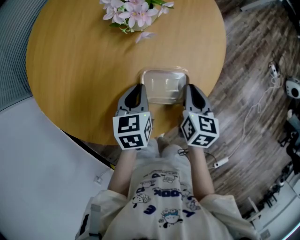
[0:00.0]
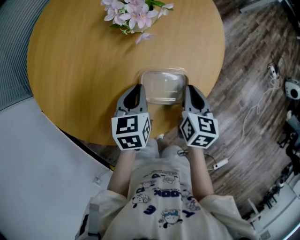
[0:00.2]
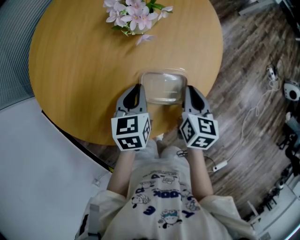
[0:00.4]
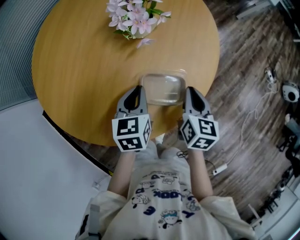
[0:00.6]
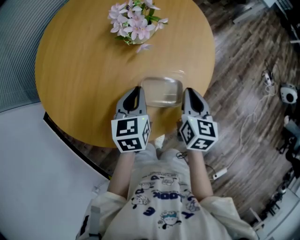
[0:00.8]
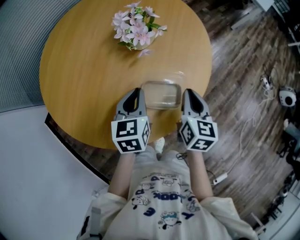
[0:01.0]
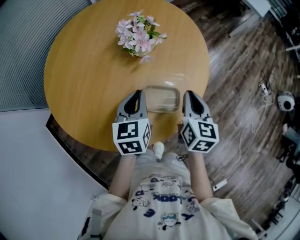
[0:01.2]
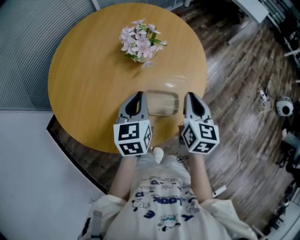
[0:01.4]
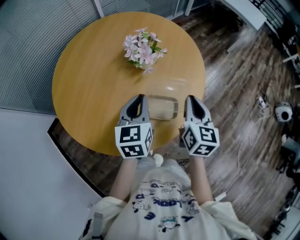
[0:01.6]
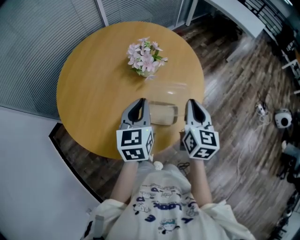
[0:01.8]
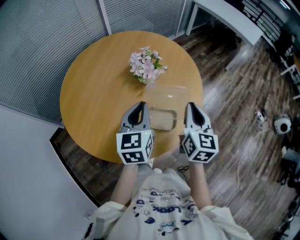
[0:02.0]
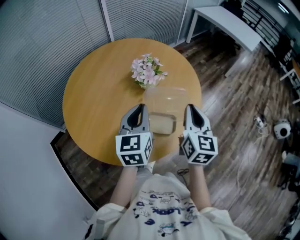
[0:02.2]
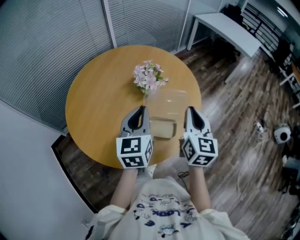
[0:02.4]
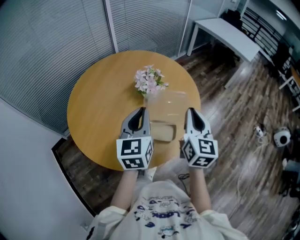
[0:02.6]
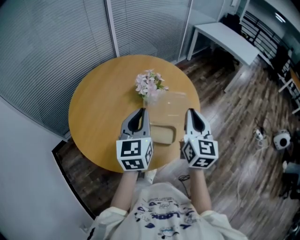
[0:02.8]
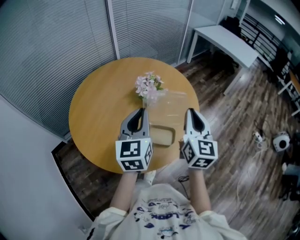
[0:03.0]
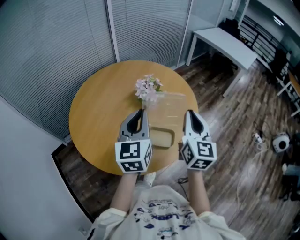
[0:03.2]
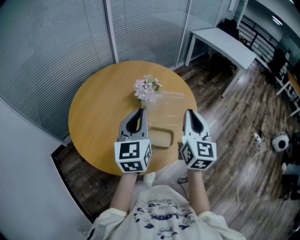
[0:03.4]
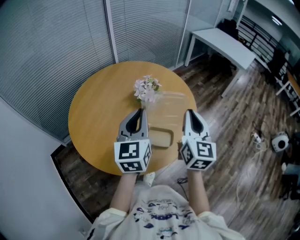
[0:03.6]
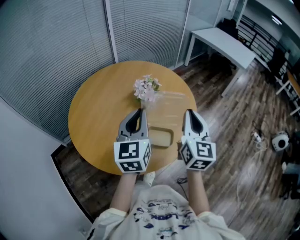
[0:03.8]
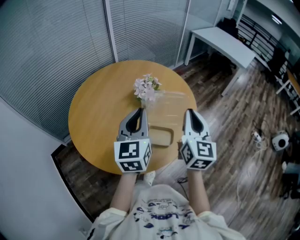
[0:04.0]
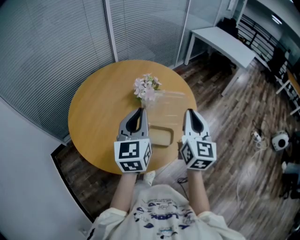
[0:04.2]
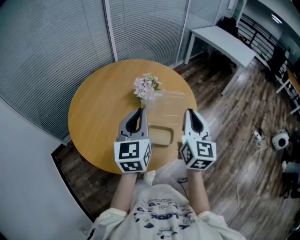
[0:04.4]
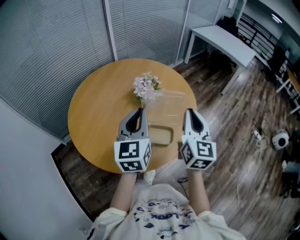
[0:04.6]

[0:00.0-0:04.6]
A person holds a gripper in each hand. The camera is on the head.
0:00.0 to 0:01.6: Both grippers travel together upward, approximately 20 cm. The left gripper swivels approximately 20 degrees.
0:01.6 to 0:03.0: The grippers both shift upward by some 15 cm.
0:03.0 to 0:04.6: The grippers move only a little.

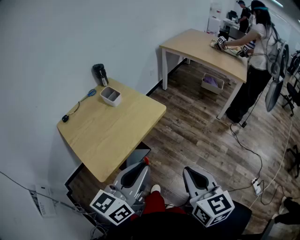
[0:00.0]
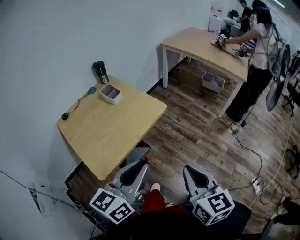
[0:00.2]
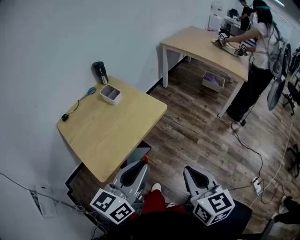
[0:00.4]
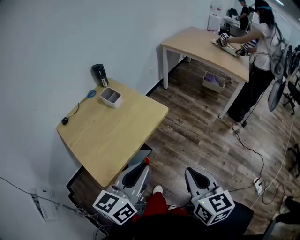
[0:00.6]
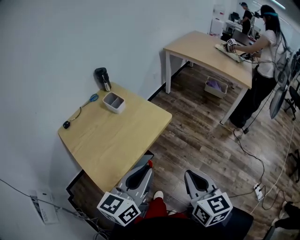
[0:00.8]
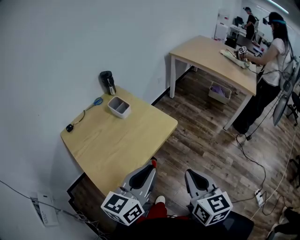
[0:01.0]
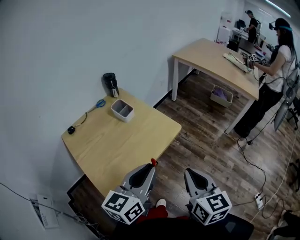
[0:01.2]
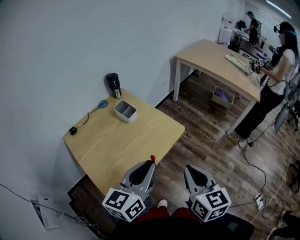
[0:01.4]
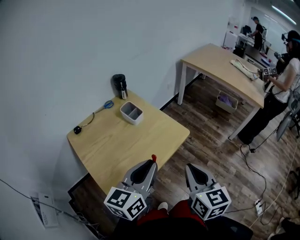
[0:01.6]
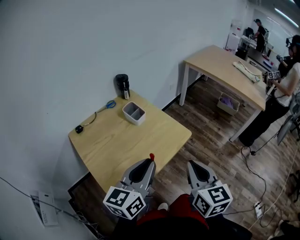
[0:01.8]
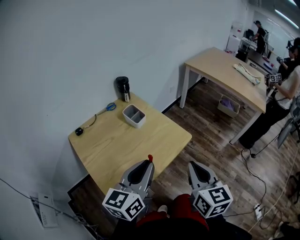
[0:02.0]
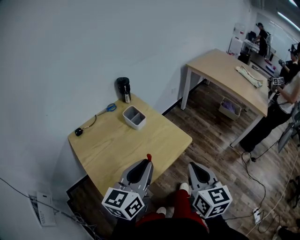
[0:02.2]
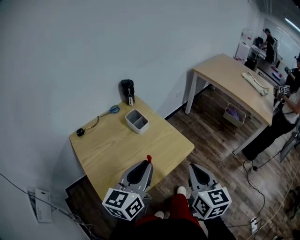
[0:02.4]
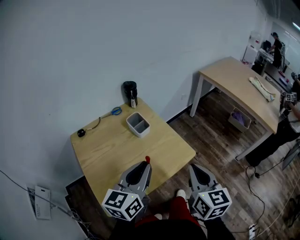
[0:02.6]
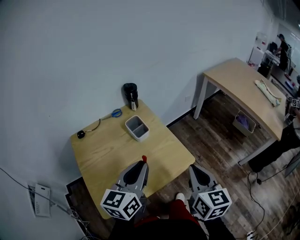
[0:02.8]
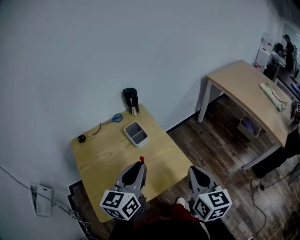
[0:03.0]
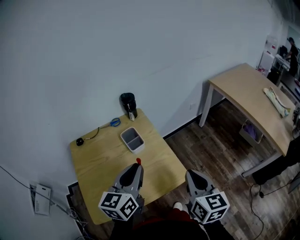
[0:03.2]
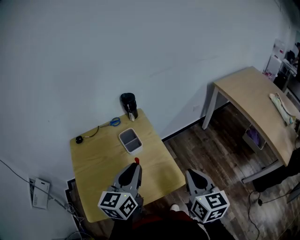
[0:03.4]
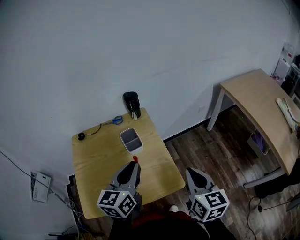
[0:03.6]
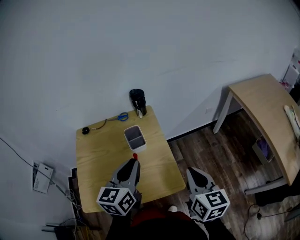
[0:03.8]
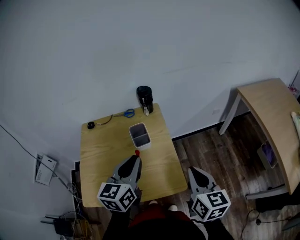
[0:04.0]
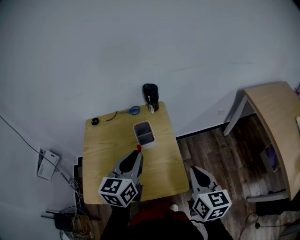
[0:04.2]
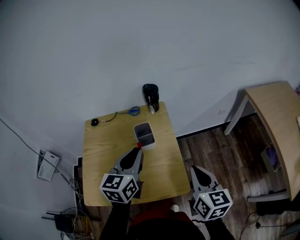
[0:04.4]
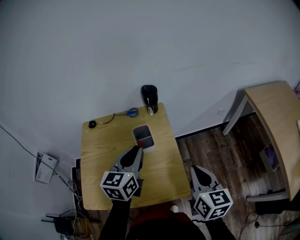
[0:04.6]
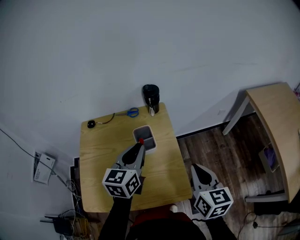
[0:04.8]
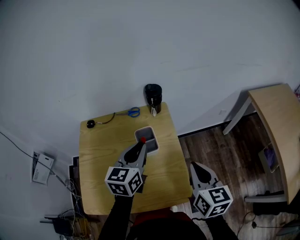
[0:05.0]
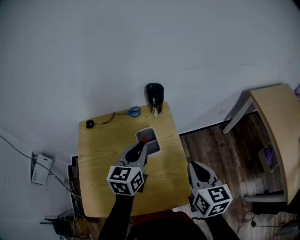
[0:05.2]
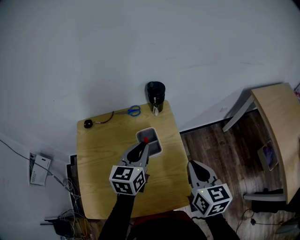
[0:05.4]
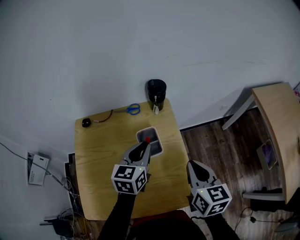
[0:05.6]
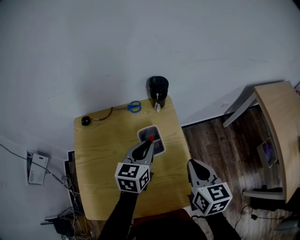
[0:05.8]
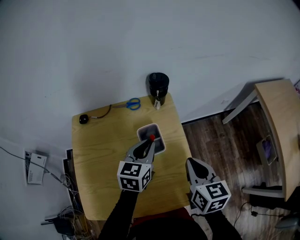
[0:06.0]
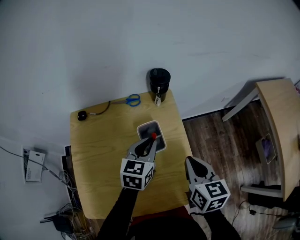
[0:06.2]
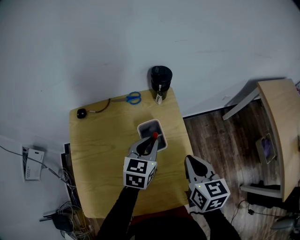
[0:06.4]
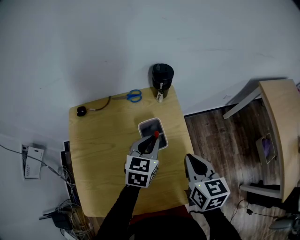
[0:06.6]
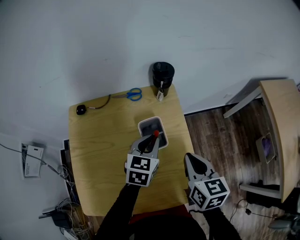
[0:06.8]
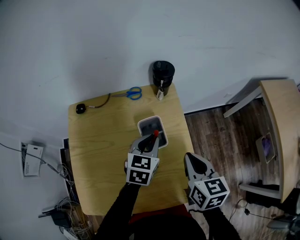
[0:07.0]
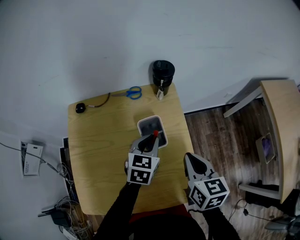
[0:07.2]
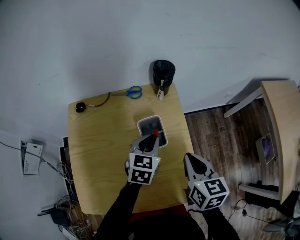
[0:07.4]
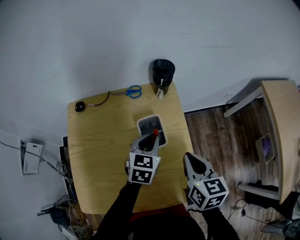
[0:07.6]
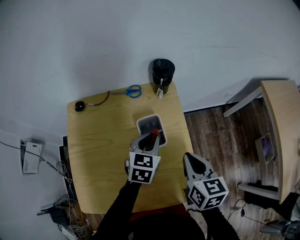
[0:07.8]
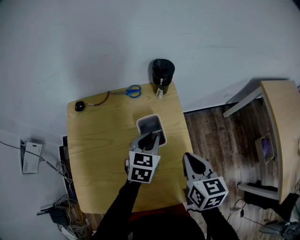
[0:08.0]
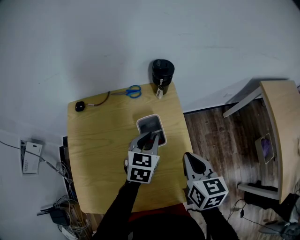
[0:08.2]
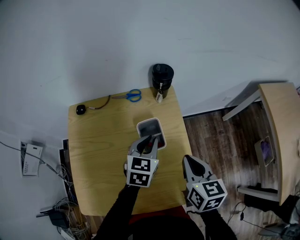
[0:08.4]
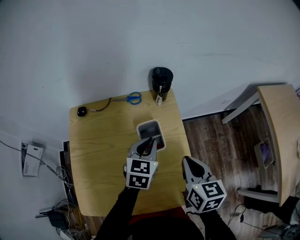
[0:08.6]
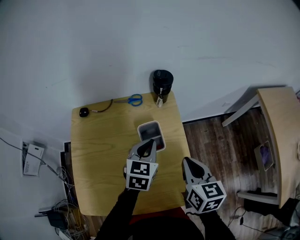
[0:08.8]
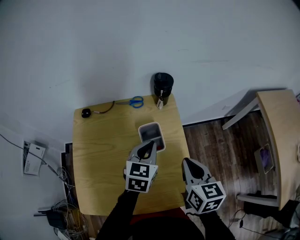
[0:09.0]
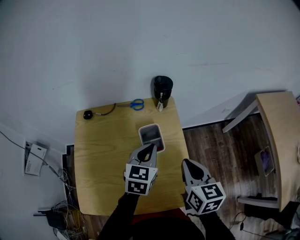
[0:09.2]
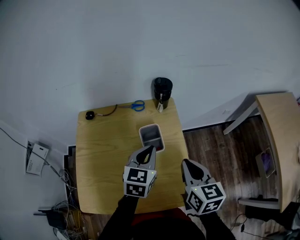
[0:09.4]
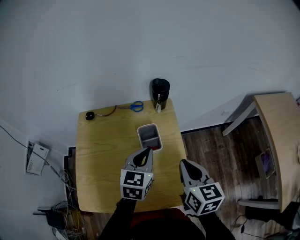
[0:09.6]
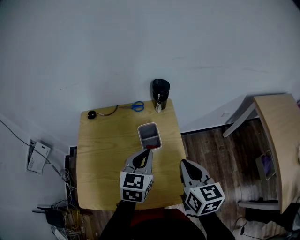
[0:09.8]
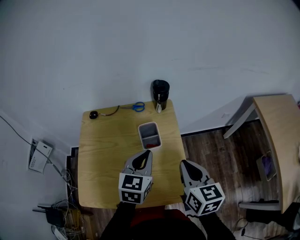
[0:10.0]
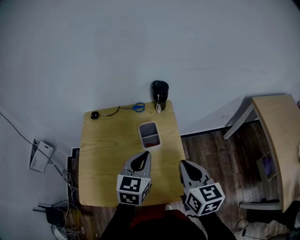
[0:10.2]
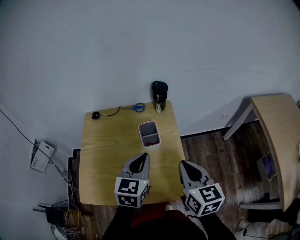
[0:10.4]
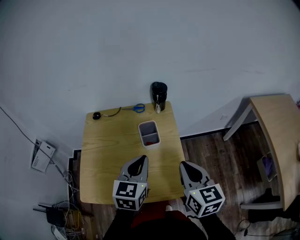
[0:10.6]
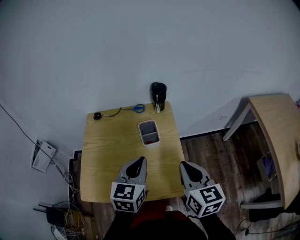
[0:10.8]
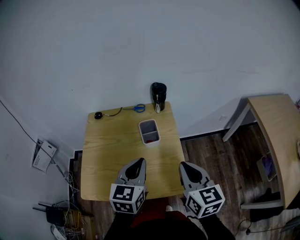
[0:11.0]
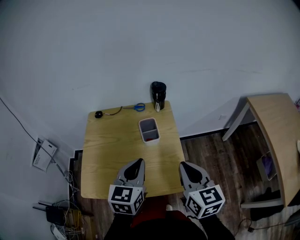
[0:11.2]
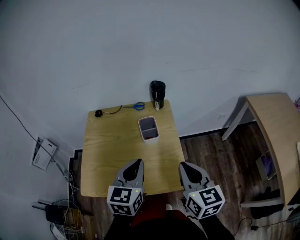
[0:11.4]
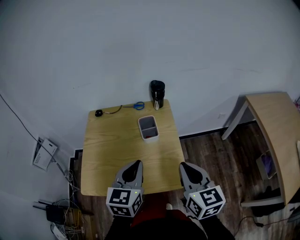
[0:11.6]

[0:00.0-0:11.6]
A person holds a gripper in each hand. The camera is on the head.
0:00.0 to 0:01.4: The two grippers go roughly 15 cm forward and to the left.
0:01.4 to 0:02.8: The two grippers go roughly 15 cm forward. The left gripper swivels roughly 20 degrees.
0:02.8 to 0:04.4: The right gripper ends up some 20 cm from where it was, and changes its angle by about 20 degrees. The left gripper ends up about 15 cm from where it was, and rotates some 30 degrees.
0:04.4 to 0:05.8: The left gripper moves forward and downward, roughly 15 cm, while the right gripper shifts approximately 15 cm forward and to the left.
0:05.8 to 0:07.2: The left gripper moves downward, some 5 cm.
0:07.2 to 0:08.8: The grippers move only a little.
0:08.8 to 0:10.2: The right gripper is displaced backward and upward by approximately 10 cm. Meanwhile the left gripper moves backward and upward, about 15 cm.
0:10.2 to 0:11.6: Both grippers move backward, some 10 cm.

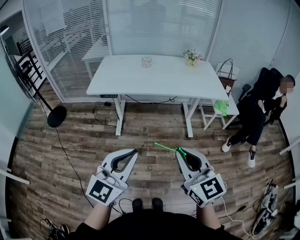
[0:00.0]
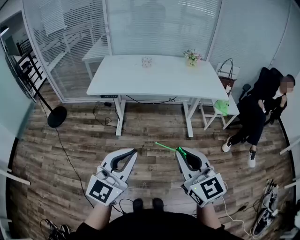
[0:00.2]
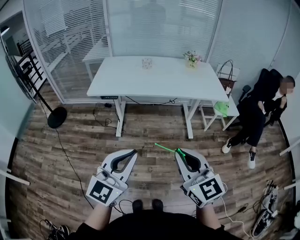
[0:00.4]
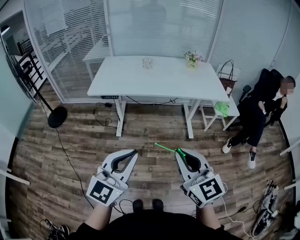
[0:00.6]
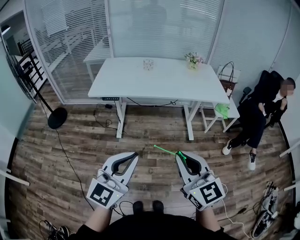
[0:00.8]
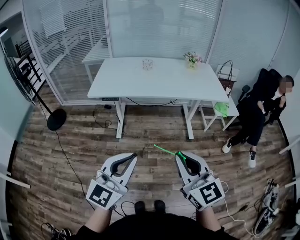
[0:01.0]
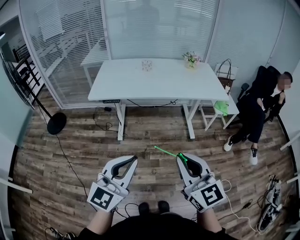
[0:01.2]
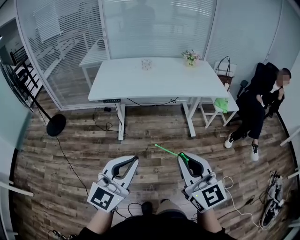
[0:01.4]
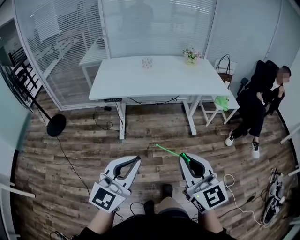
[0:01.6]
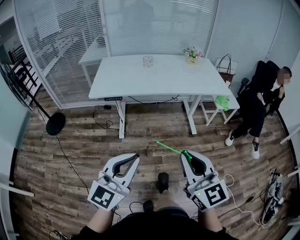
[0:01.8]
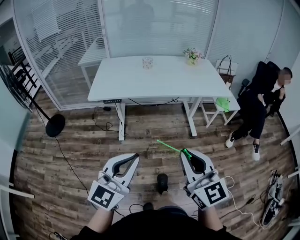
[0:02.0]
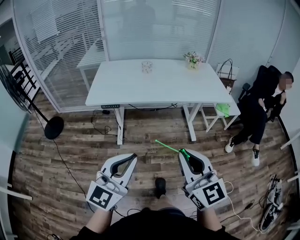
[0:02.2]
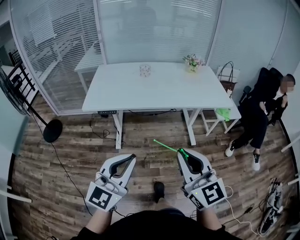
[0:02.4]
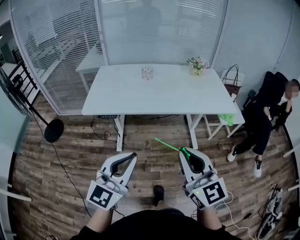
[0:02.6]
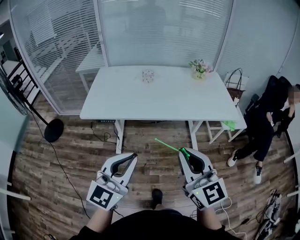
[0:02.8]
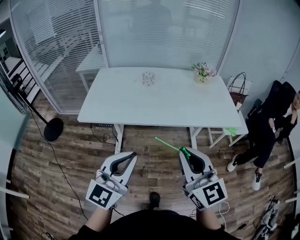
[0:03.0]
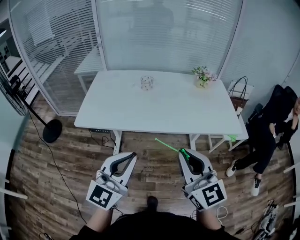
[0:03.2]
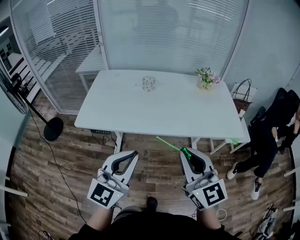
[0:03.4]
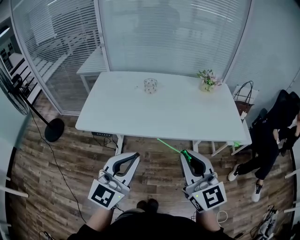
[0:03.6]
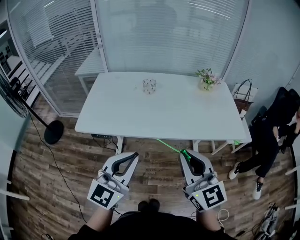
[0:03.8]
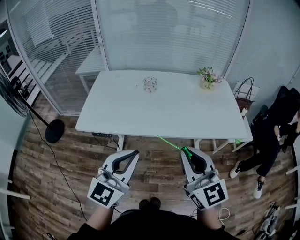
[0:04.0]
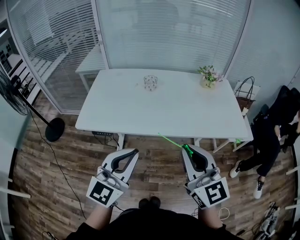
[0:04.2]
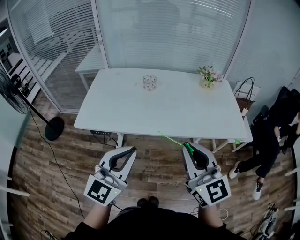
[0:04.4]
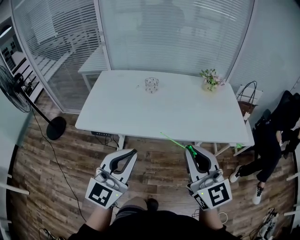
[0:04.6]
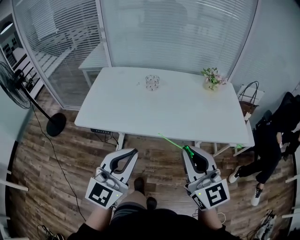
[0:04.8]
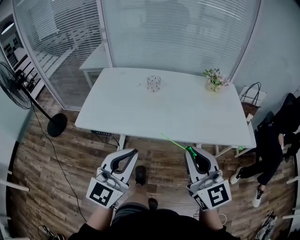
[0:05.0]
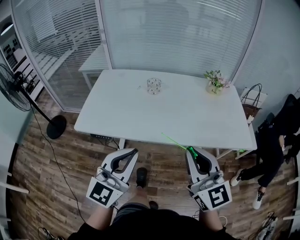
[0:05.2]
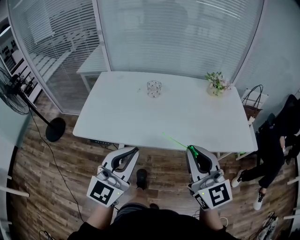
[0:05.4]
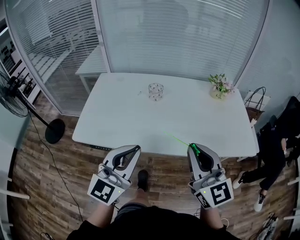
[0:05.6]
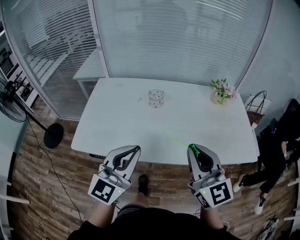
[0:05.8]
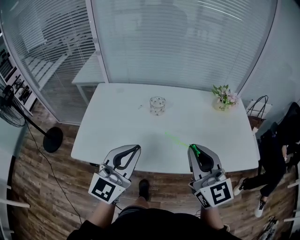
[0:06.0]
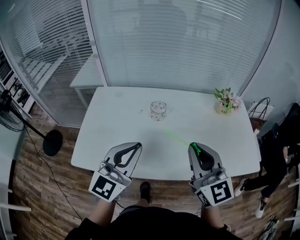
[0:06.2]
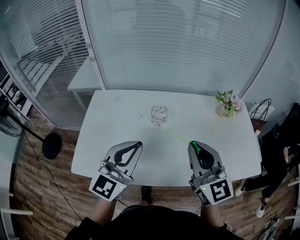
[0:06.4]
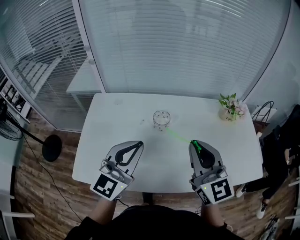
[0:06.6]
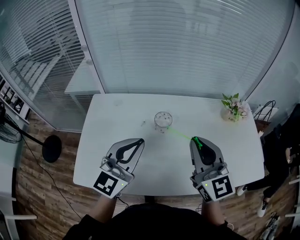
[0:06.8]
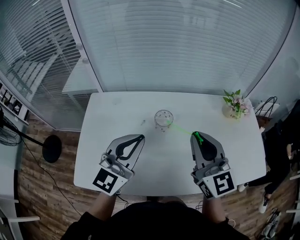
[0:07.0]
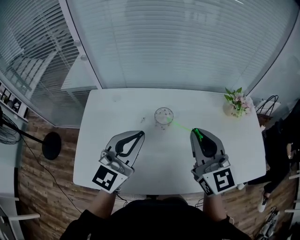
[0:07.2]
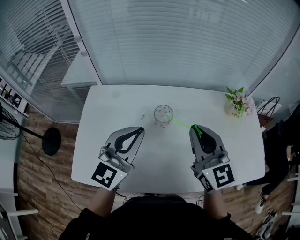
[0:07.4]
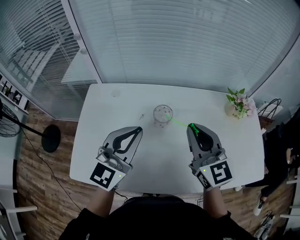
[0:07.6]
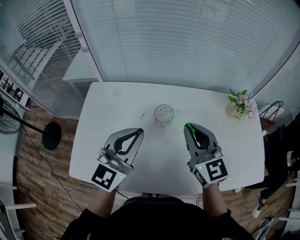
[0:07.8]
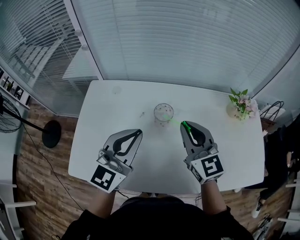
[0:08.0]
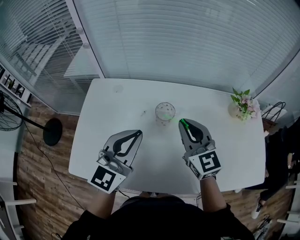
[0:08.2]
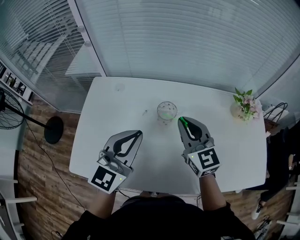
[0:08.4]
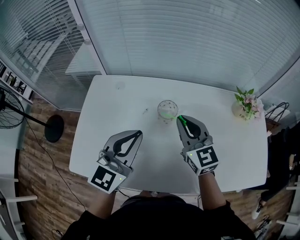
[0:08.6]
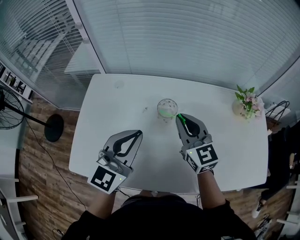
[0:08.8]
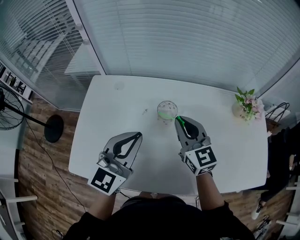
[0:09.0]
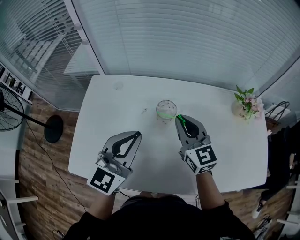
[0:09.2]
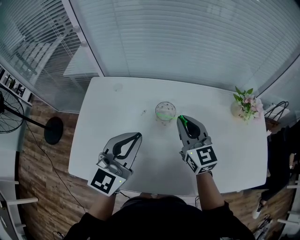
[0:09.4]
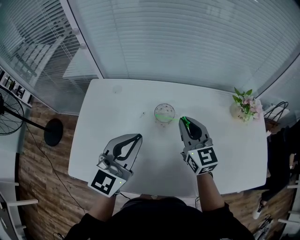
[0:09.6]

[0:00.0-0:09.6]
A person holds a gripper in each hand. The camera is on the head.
0:00.0 to 0:01.6: Both grippers travel together to the left, roughly 5 cm.
0:01.6 to 0:03.2: The two grippers go about 30 cm forward.
0:03.2 to 0:04.8: Both grippers move forward, about 5 cm.
0:04.8 to 0:06.4: Both grippers travel together forward, about 30 cm.
0:06.4 to 0:08.0: The left gripper goes about 10 cm forward. The right gripper shifts about 15 cm forward and downward.
0:08.0 to 0:09.6: The right gripper travels downward by roughly 5 cm.
